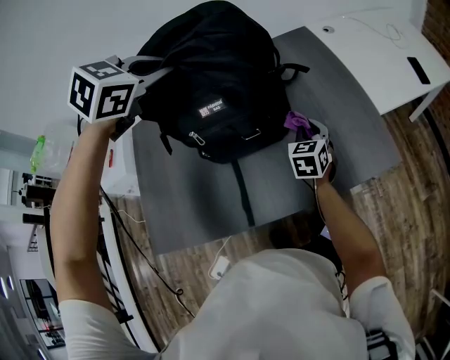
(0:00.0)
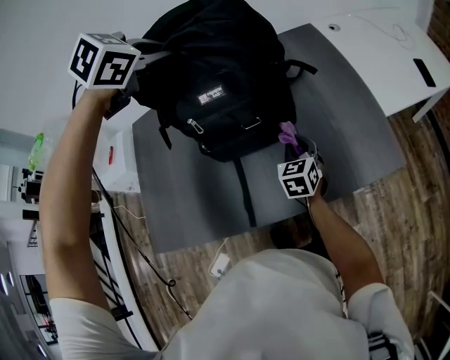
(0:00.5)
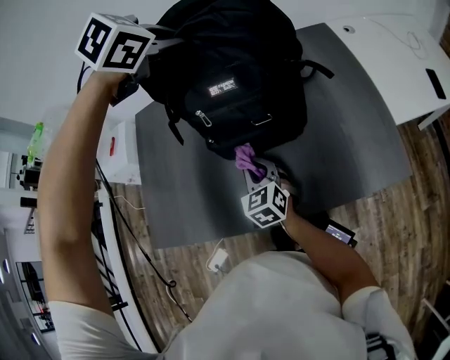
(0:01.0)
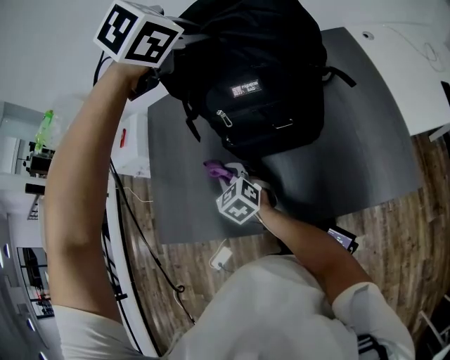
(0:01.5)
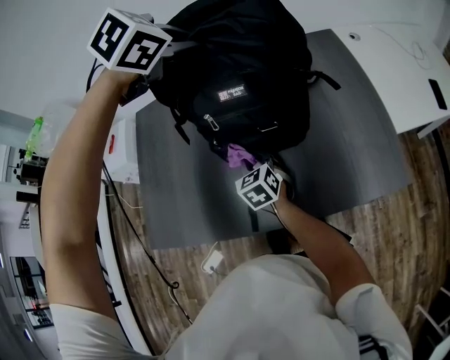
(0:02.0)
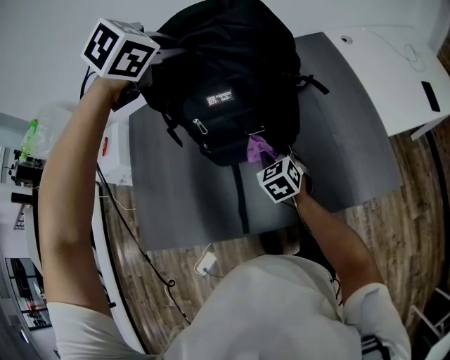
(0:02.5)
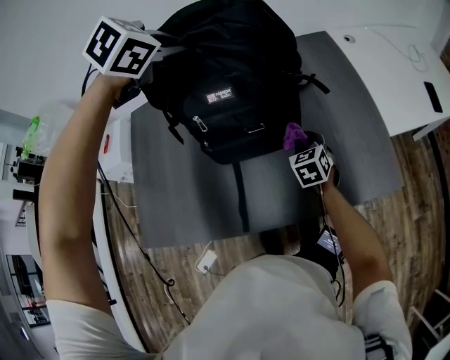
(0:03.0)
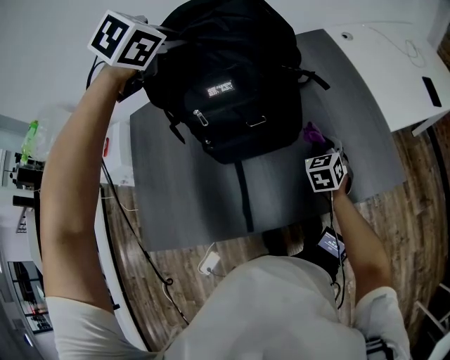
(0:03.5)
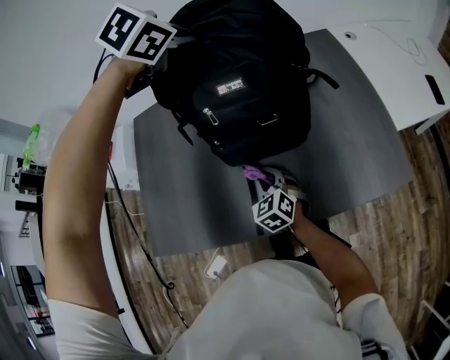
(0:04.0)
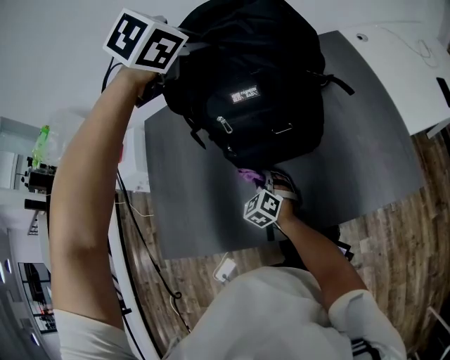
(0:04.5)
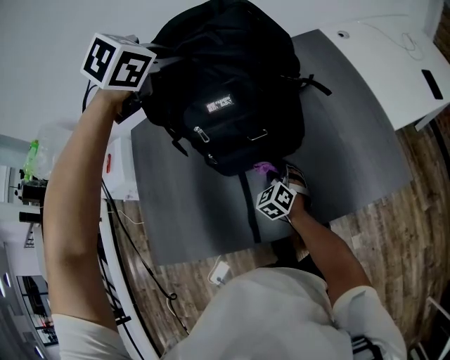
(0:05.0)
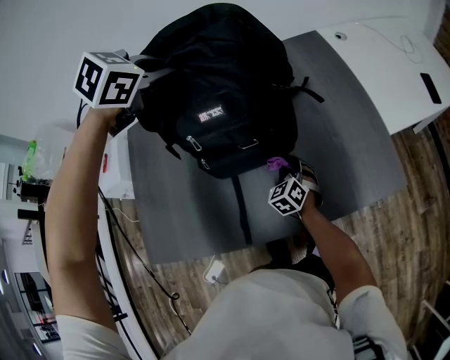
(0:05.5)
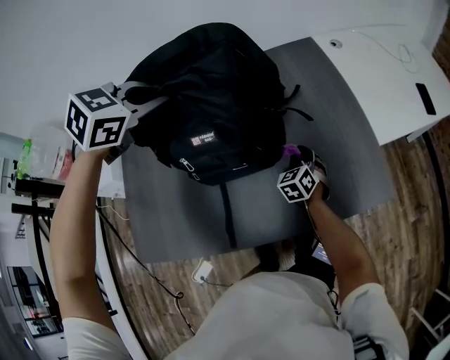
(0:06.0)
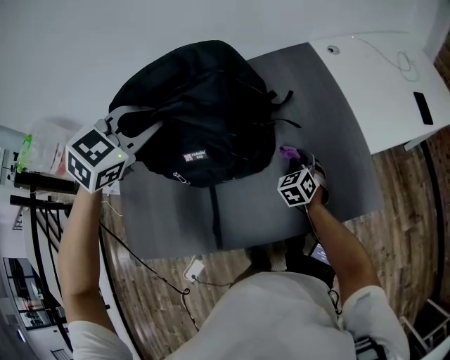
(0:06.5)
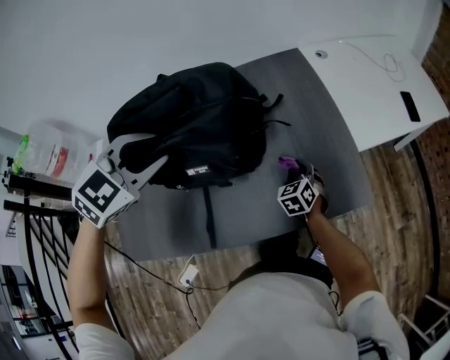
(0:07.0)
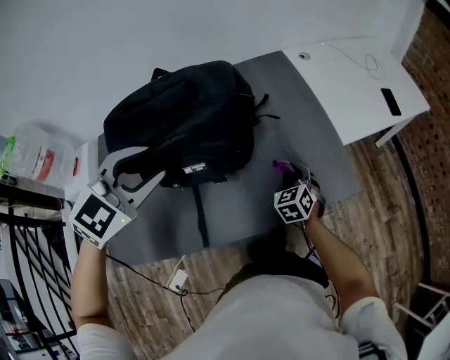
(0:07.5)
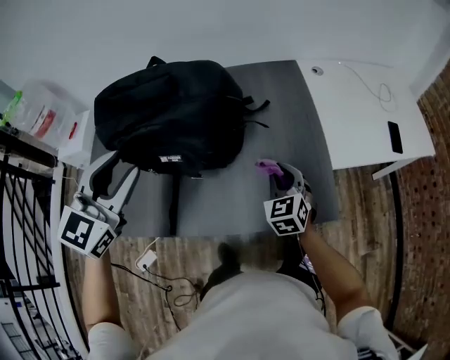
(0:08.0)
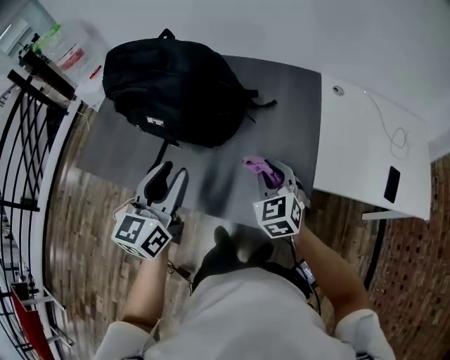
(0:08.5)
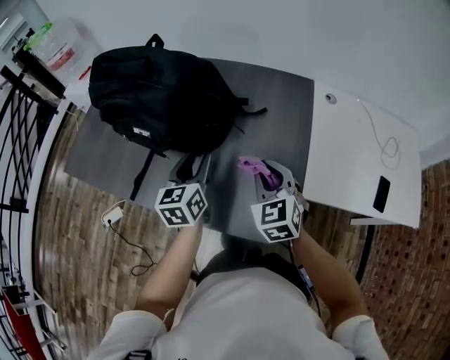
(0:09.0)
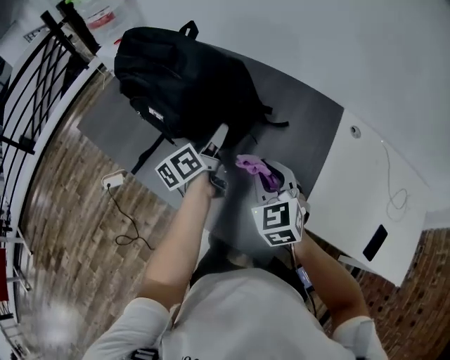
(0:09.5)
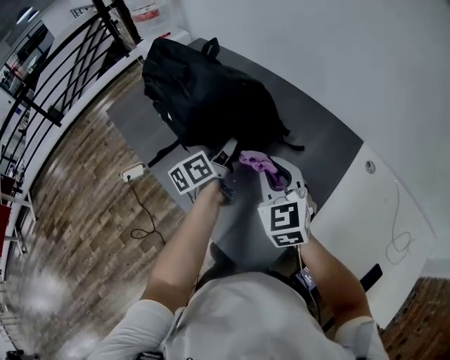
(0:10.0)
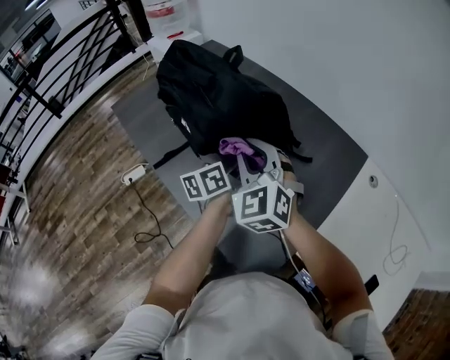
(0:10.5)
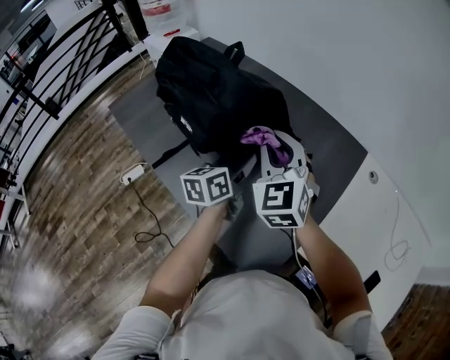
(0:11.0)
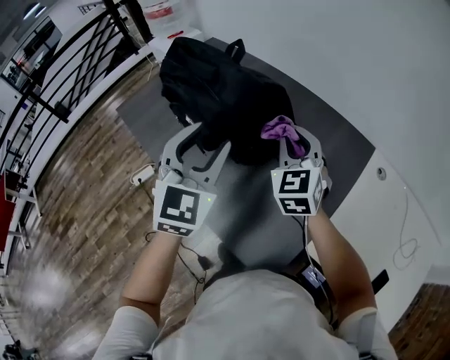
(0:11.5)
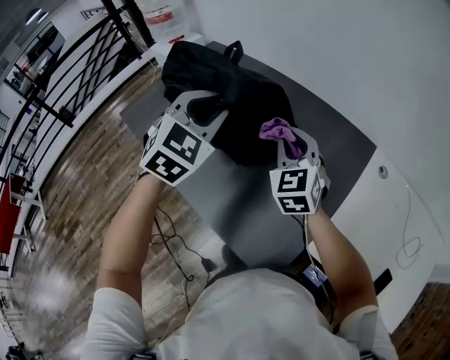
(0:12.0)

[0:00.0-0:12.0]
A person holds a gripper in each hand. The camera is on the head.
0:00.0 to 0:02.0: The right gripper ends up approximately 25 cm from where it was, and swivels roughly 30 degrees. Meanwhile the left gripper ends up approximately 5 cm from where it was.
0:02.0 to 0:04.0: The right gripper moves approximately 25 cm to the right and comes back.
0:04.0 to 0:06.0: The right gripper shifts about 25 cm to the right and forward, and rotates roughly 20 degrees; the left gripper travels backward by about 5 cm.
0:06.0 to 0:08.0: The right gripper goes approximately 15 cm upward and to the right. The left gripper goes approximately 20 cm backward, angles its fingers upward, by roughly 30 degrees, and opens its fingers.
0:08.0 to 0:10.0: The left gripper moves about 25 cm, and twists roughly 80 degrees counterclockwise, seen from behind. Meanwhile the right gripper heads upward, covering approximately 15 cm, and changes its angle by about 50 degrees.
0:10.0 to 0:12.0: The left gripper moves upward, roughly 15 cm, rotates around the line of its fingers by roughly 90 degrees, clockwise from behind, and opens, then closes again, while the right gripper heads forward, covering some 5 cm, and moves roughly 10 cm to the left and comes back.

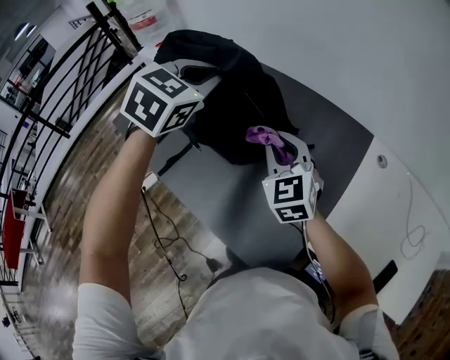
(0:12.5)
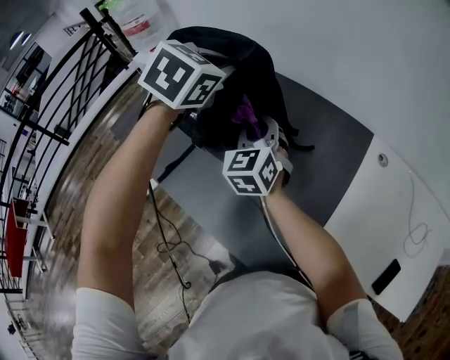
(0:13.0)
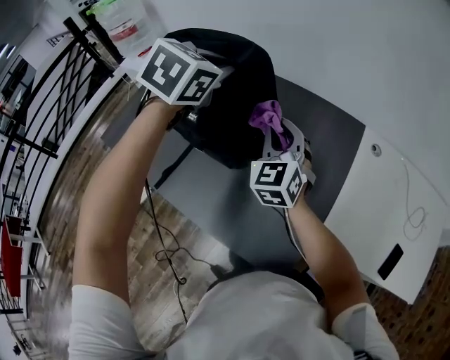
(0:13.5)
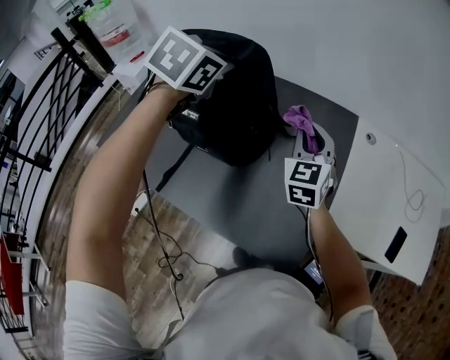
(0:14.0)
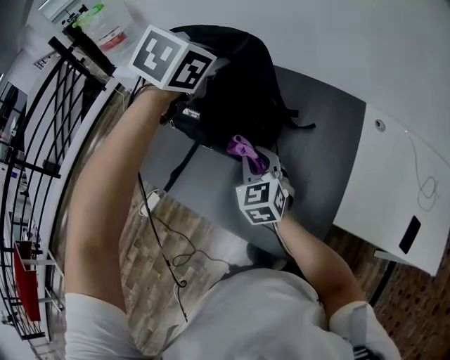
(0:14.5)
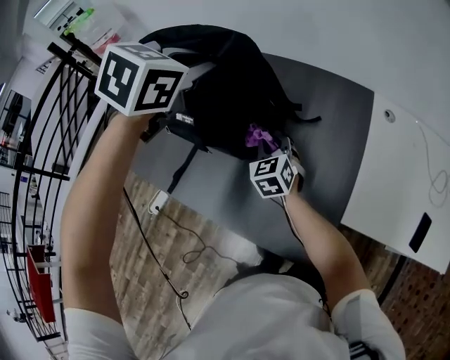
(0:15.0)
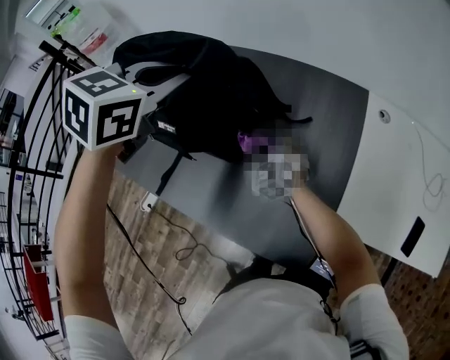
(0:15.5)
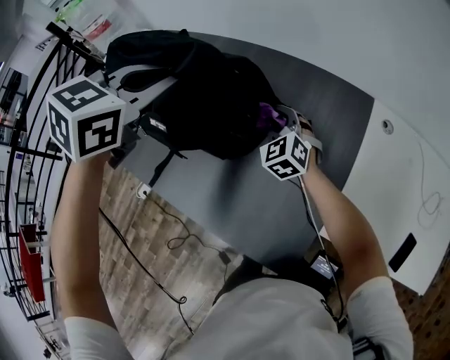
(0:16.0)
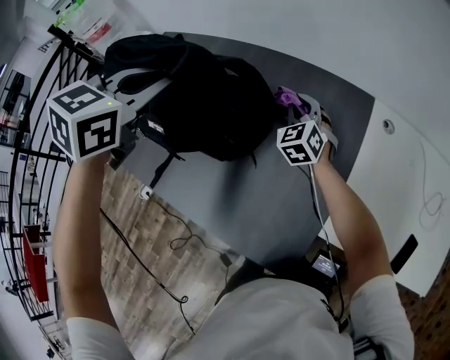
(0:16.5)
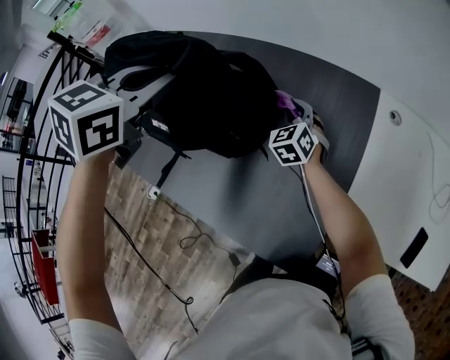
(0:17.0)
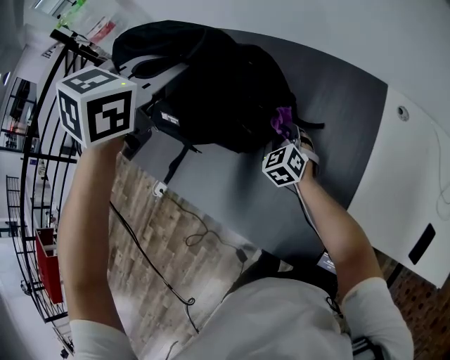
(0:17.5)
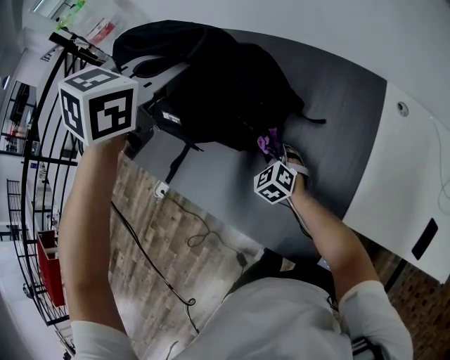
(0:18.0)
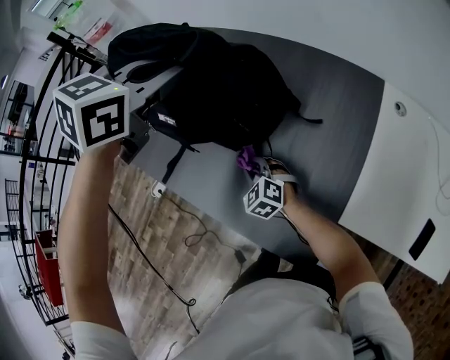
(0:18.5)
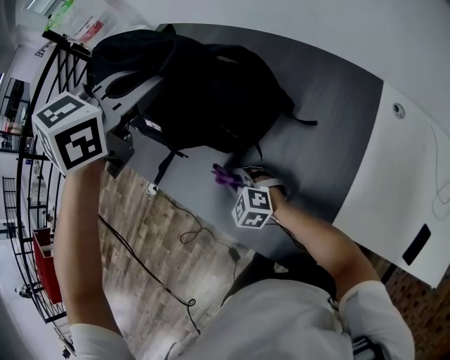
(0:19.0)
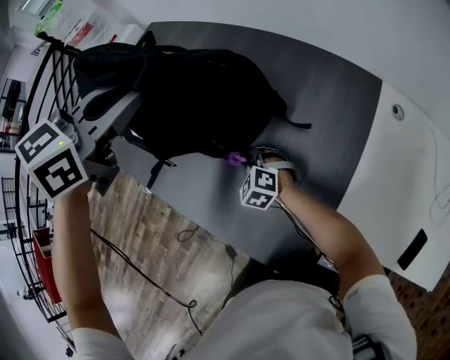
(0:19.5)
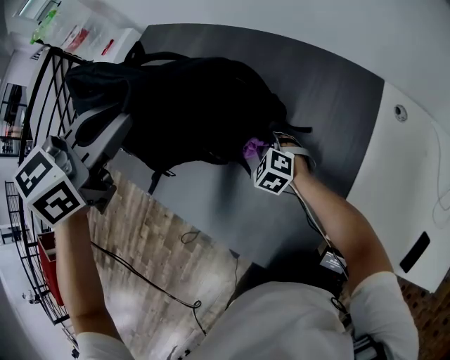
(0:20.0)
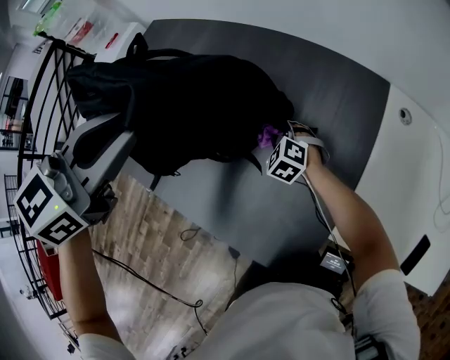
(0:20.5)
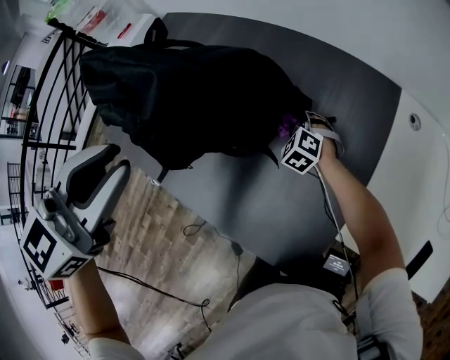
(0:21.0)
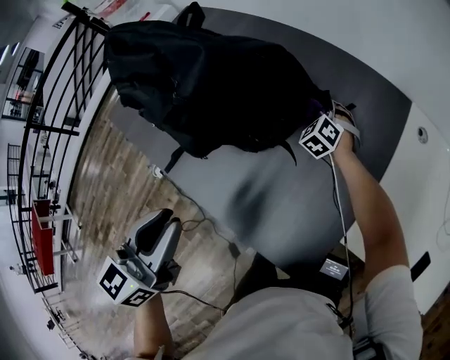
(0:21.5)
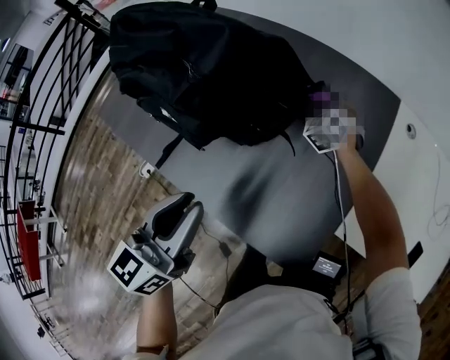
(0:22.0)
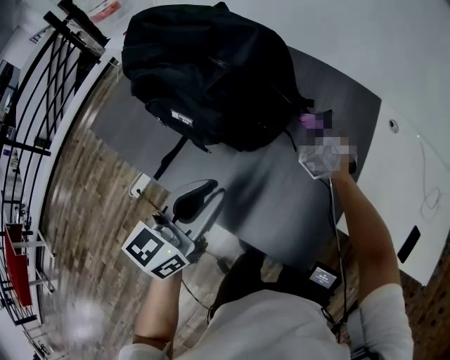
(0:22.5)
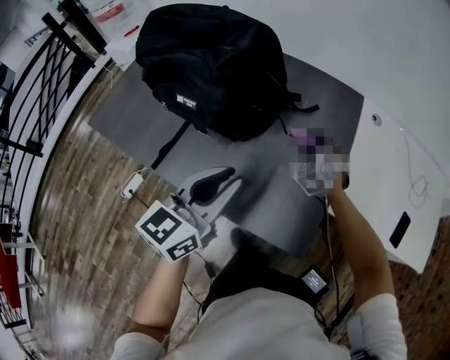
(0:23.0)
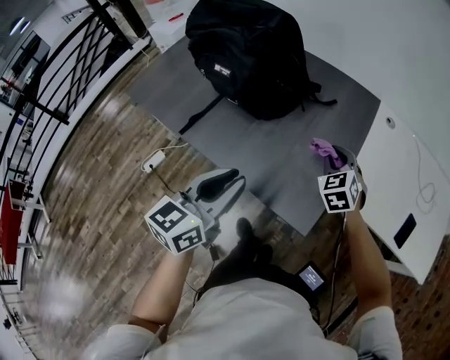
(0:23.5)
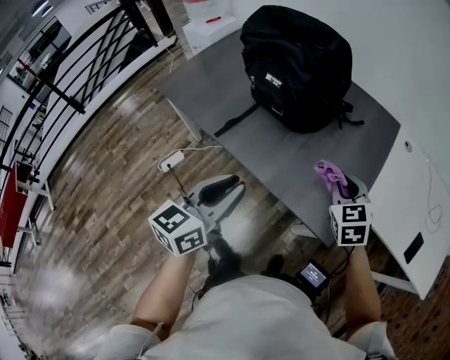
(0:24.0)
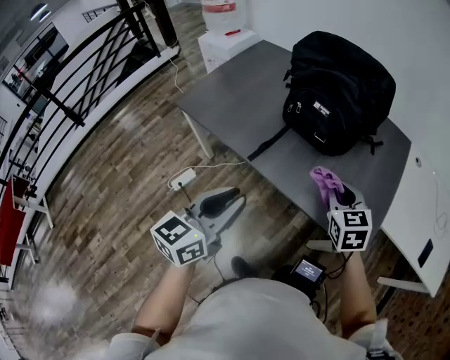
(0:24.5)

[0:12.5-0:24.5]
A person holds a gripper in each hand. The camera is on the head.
0:12.5 to 0:14.5: The right gripper swings left and right, roughly 15 cm each way, with 2 reversals.
0:14.5 to 0:16.5: The right gripper moves forward and to the right, roughly 25 cm.
0:16.5 to 0:18.5: The right gripper heads backward, to the left and downward, covering about 30 cm, and changes its angle by approximately 40 degrees.
0:18.5 to 0:20.5: The right gripper goes about 20 cm forward and to the right.
0:20.5 to 0:22.5: The left gripper moves backward and downward, some 20 cm, and turns by approximately 30 degrees. The right gripper travels to the right and upward by some 10 cm, and swivels some 30 degrees.
0:22.5 to 0:24.5: The left gripper travels backward and to the left by roughly 30 cm, while the right gripper is displaced backward, to the left and upward by some 40 cm, and changes its angle by about 40 degrees.

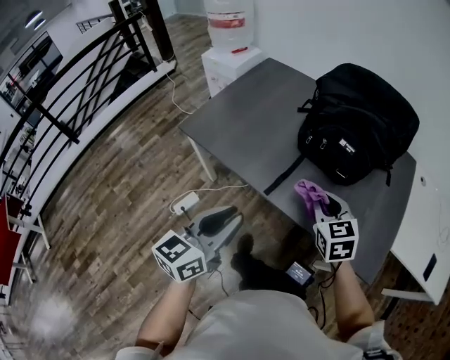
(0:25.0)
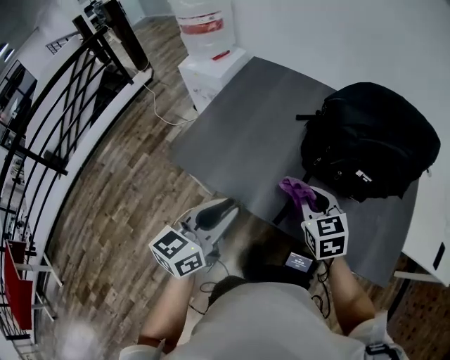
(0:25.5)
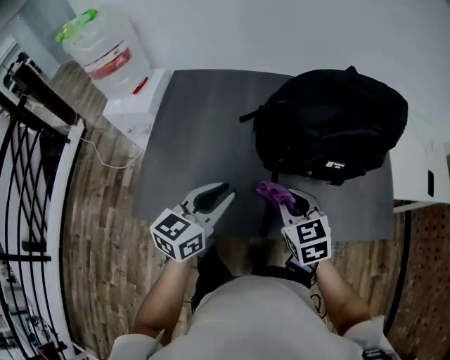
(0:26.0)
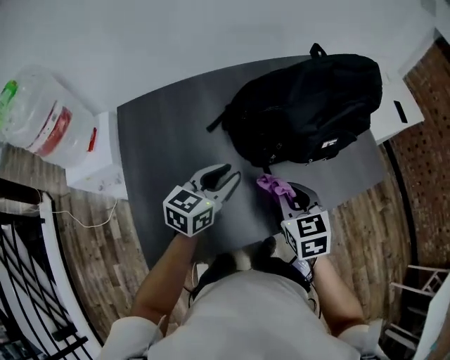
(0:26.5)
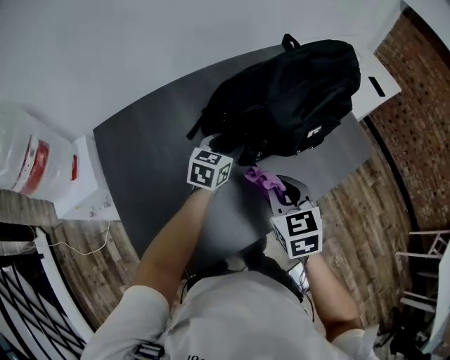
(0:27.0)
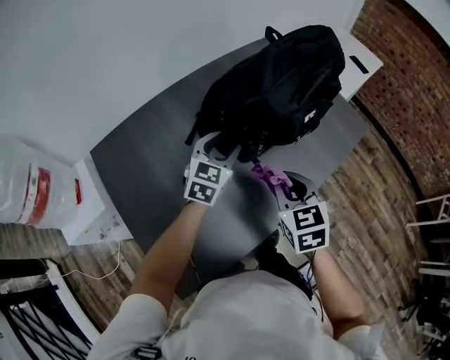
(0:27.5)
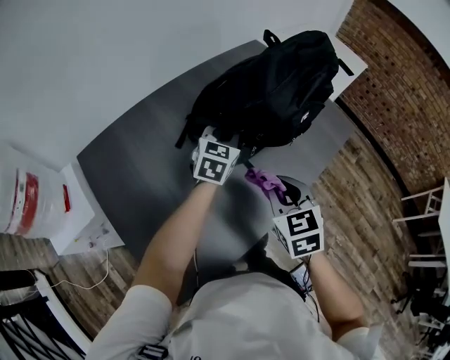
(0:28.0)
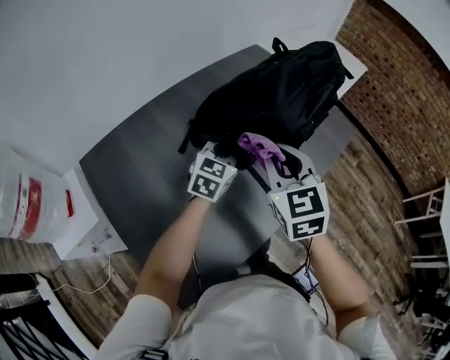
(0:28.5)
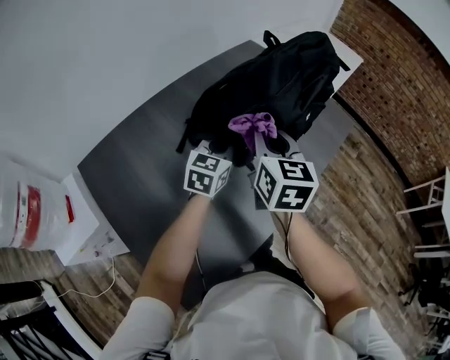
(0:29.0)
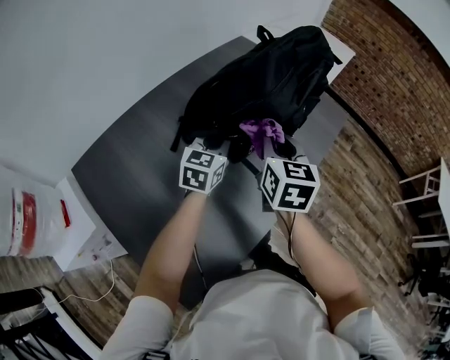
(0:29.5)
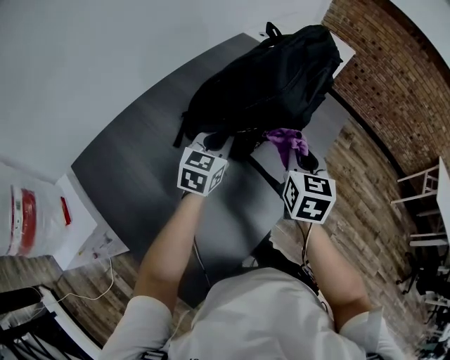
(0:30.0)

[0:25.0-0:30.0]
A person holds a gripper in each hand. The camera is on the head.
0:25.0 to 0:27.5: The right gripper moves roughly 20 cm, and changes its angle by approximately 70 degrees. The left gripper moves roughly 50 cm, swivels some 70 degrees, and opens.
0:27.5 to 0:30.0: The left gripper closes up, while the right gripper moves forward, about 5 cm, moves some 5 cm to the left and comes back, and turns by some 30 degrees.
